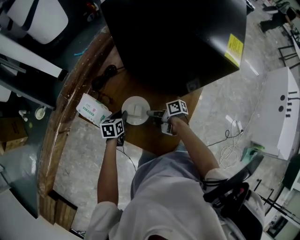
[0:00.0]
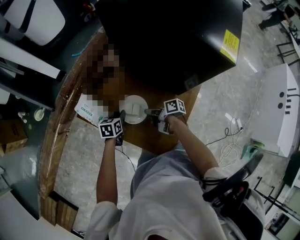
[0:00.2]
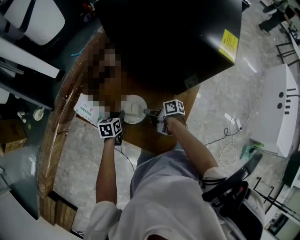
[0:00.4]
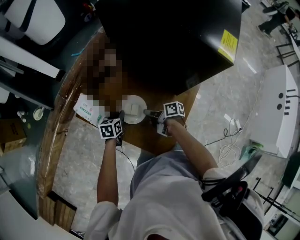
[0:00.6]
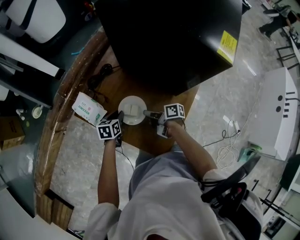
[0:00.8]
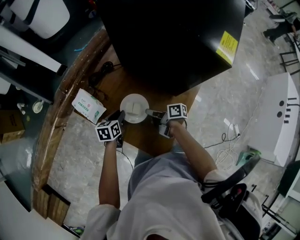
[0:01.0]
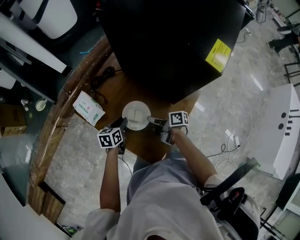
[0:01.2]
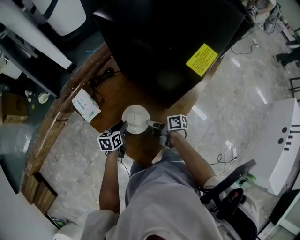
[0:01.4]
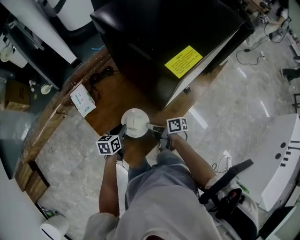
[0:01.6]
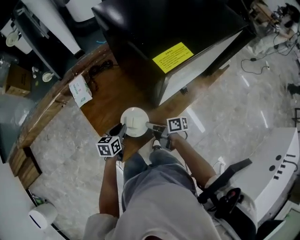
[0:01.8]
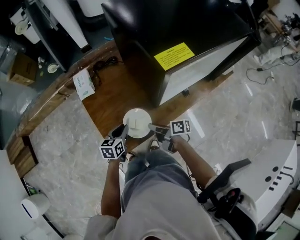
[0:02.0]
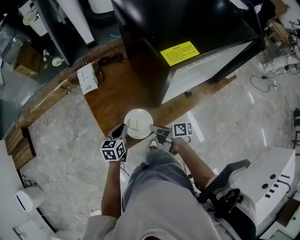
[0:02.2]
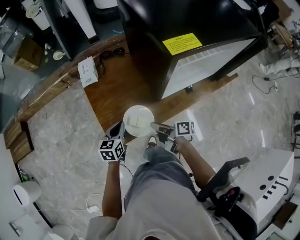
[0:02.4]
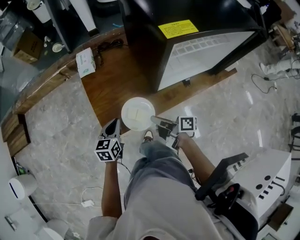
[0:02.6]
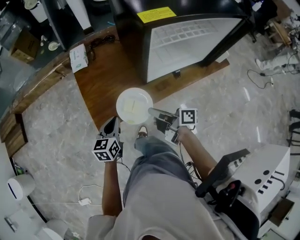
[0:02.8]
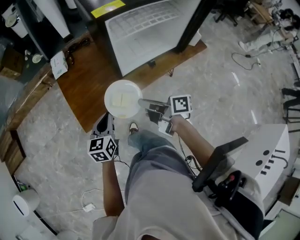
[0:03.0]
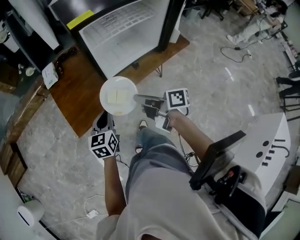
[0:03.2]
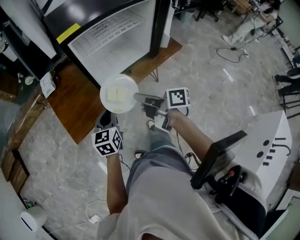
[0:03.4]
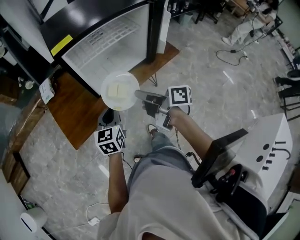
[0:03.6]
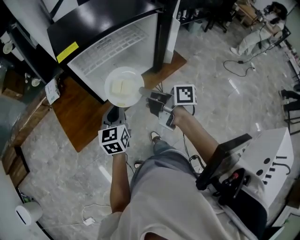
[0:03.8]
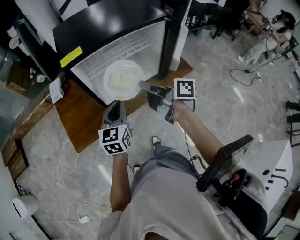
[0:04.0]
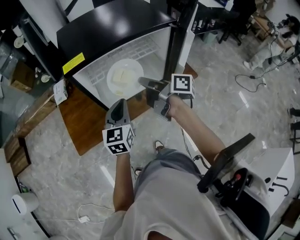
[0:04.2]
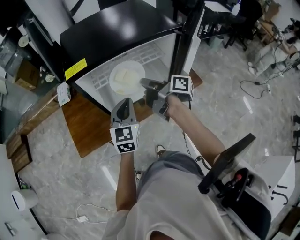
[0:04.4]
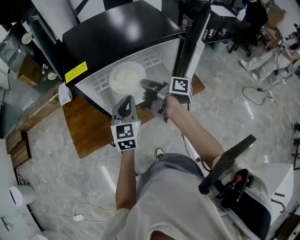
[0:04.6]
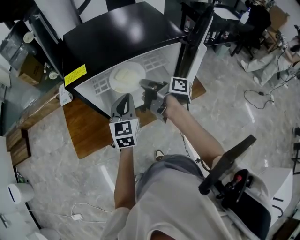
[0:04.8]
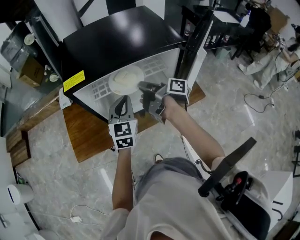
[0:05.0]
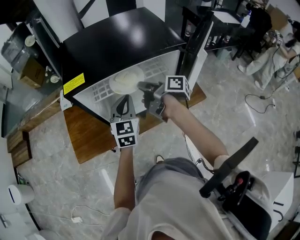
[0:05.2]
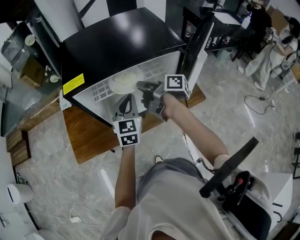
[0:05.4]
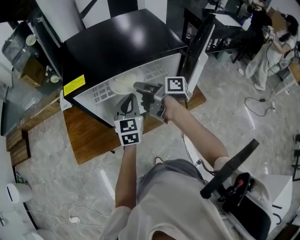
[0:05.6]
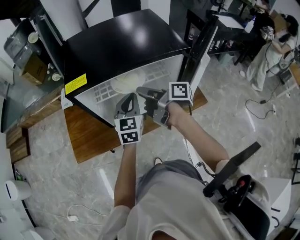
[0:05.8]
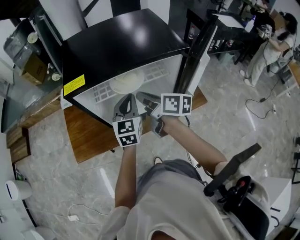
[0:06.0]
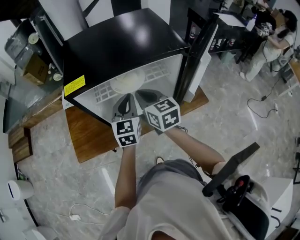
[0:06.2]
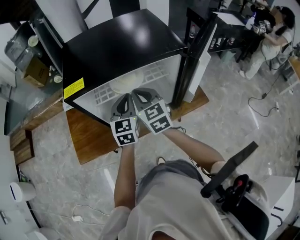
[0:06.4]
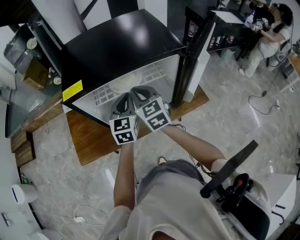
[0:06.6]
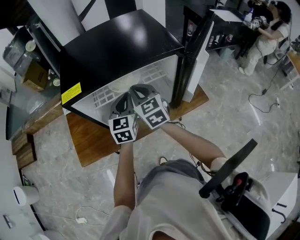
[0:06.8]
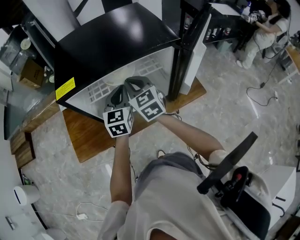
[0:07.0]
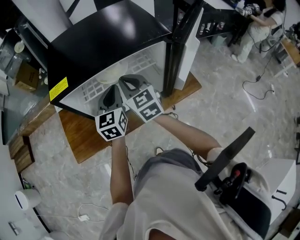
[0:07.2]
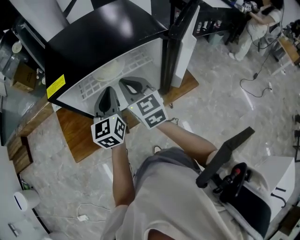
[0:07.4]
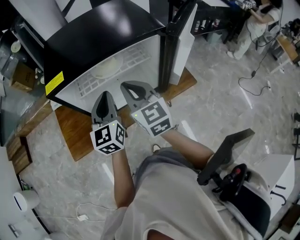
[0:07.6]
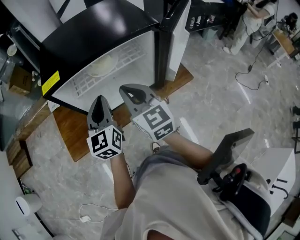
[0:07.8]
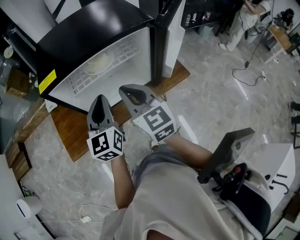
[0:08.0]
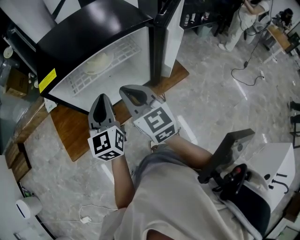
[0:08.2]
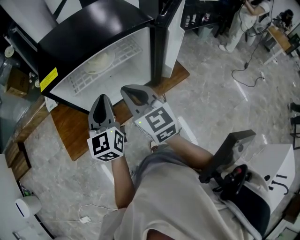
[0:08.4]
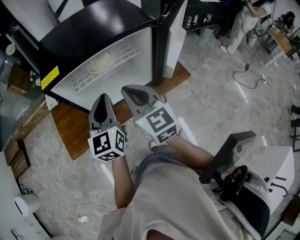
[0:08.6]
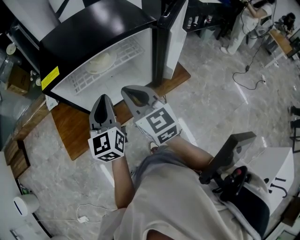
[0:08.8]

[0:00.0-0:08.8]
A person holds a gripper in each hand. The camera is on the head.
0:00.0 to 0:01.4: The right gripper goes approximately 10 cm to the right, while the left gripper is displaced to the right and backward by approximately 10 cm.
0:01.4 to 0:03.0: The two grippers travel together, approximately 50 cm. The right gripper swivels roughly 30 degrees. Meanwhile the left gripper swivels approximately 30 degrees, and closes its fingers.
0:03.0 to 0:04.4: The pair of grippers is taken to the right, roughly 40 cm. The left gripper moves upward, roughly 20 cm, and changes its angle by roughly 20 degrees.
0:04.4 to 0:05.8: The right gripper heads forward, covering approximately 5 cm, and opens up, while the left gripper moves forward and to the right, roughly 10 cm.
0:05.8 to 0:07.4: The left gripper moves about 5 cm. Meanwhile the right gripper rotates around the line of its fingers by some 80 degrees, counterclockwise from behind, and closes.
0:07.4 to 0:08.8: The two grippers go approximately 10 cm backward.

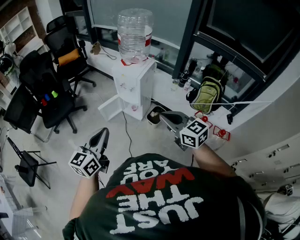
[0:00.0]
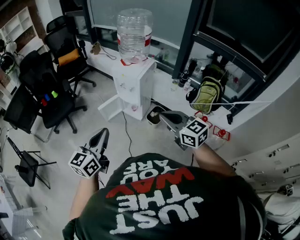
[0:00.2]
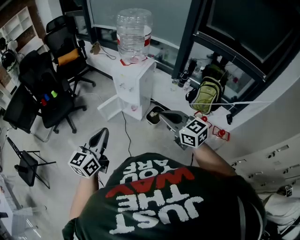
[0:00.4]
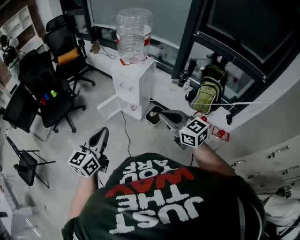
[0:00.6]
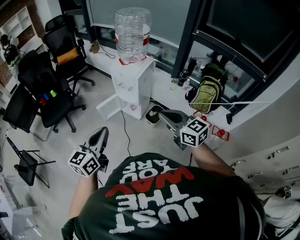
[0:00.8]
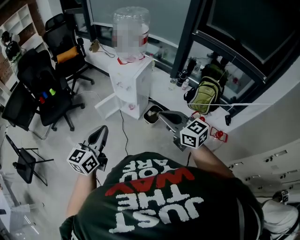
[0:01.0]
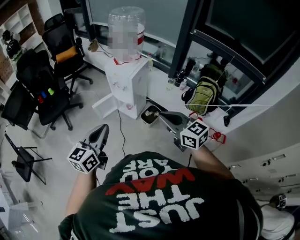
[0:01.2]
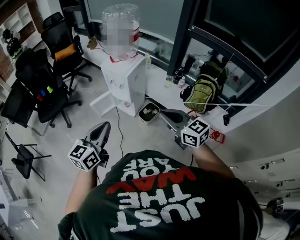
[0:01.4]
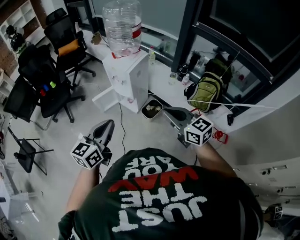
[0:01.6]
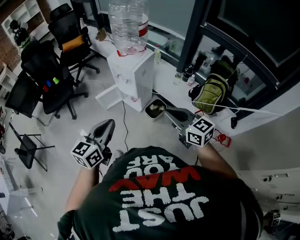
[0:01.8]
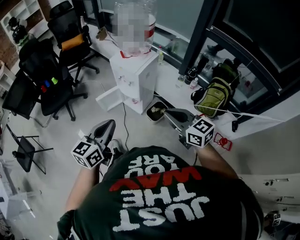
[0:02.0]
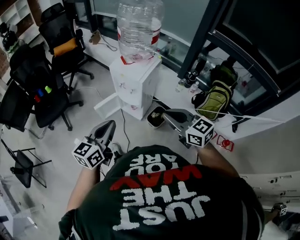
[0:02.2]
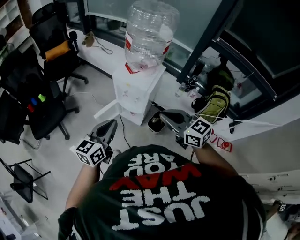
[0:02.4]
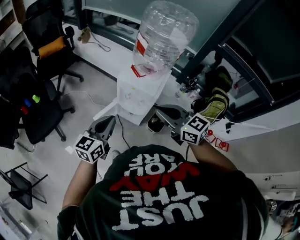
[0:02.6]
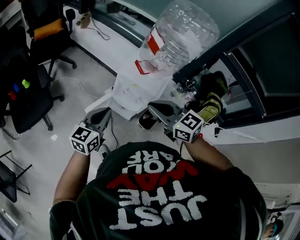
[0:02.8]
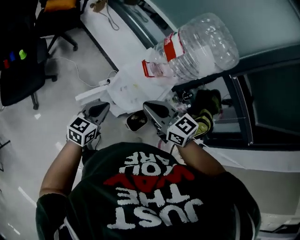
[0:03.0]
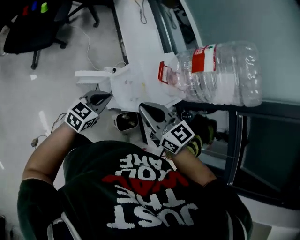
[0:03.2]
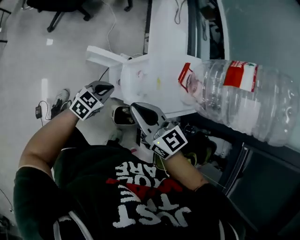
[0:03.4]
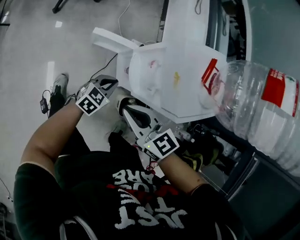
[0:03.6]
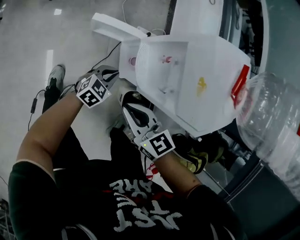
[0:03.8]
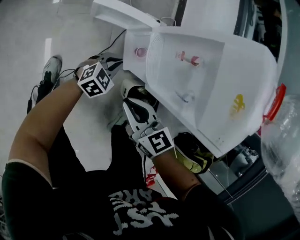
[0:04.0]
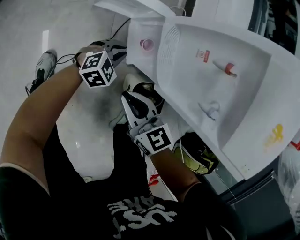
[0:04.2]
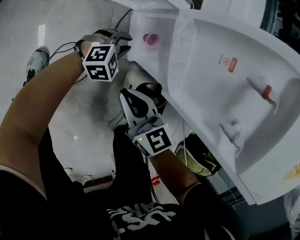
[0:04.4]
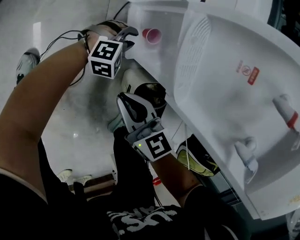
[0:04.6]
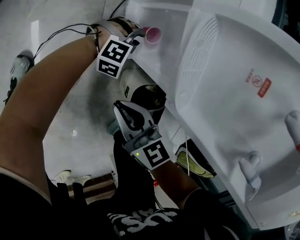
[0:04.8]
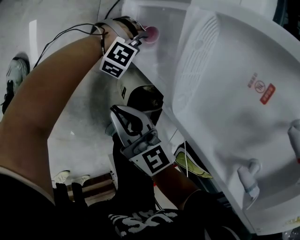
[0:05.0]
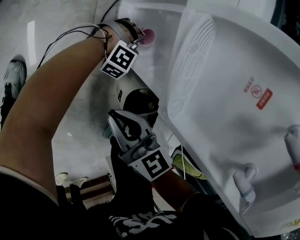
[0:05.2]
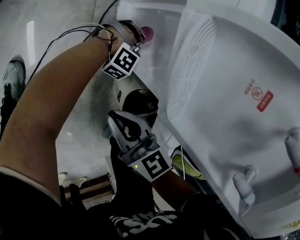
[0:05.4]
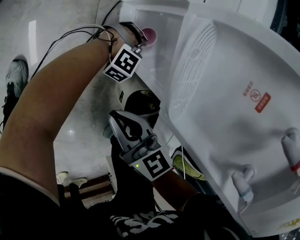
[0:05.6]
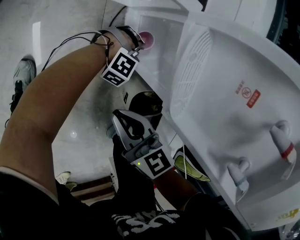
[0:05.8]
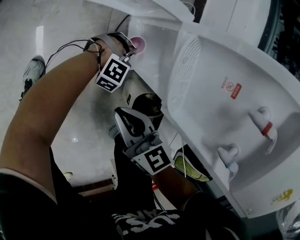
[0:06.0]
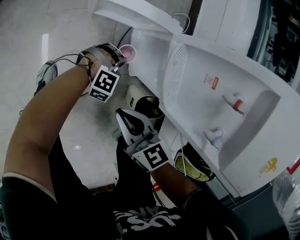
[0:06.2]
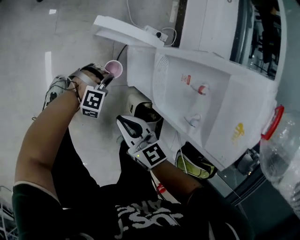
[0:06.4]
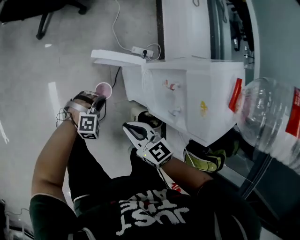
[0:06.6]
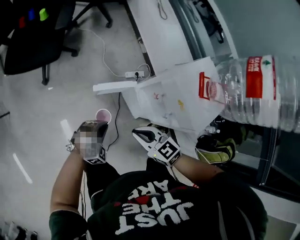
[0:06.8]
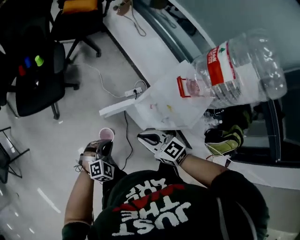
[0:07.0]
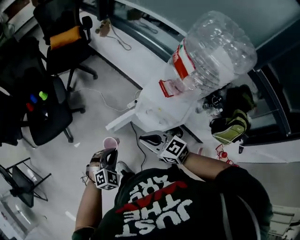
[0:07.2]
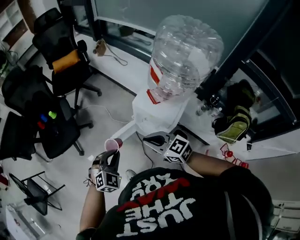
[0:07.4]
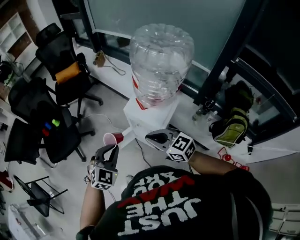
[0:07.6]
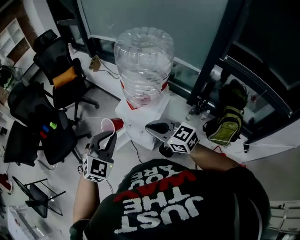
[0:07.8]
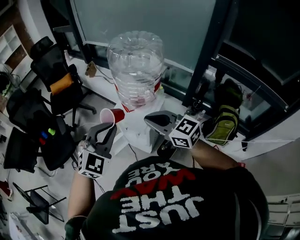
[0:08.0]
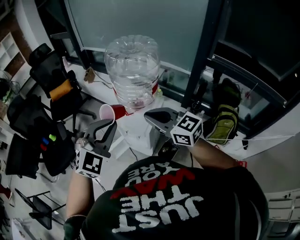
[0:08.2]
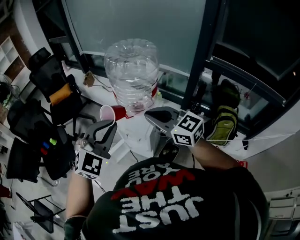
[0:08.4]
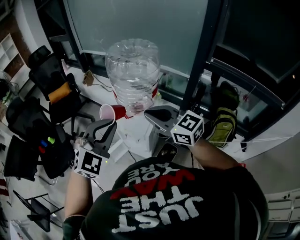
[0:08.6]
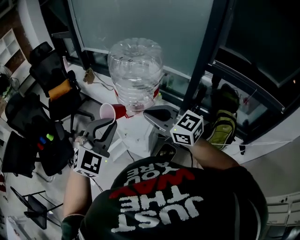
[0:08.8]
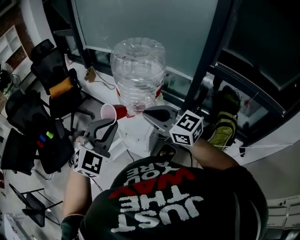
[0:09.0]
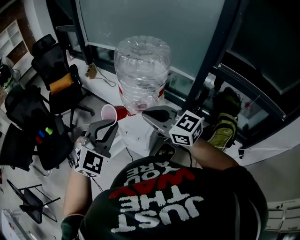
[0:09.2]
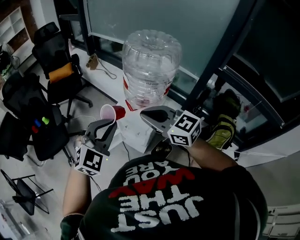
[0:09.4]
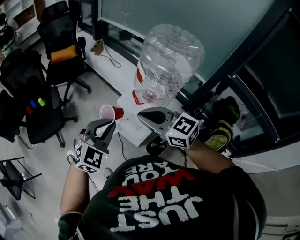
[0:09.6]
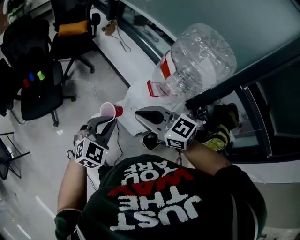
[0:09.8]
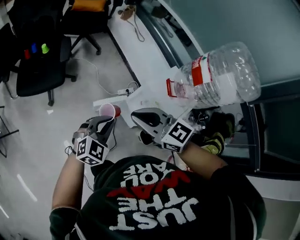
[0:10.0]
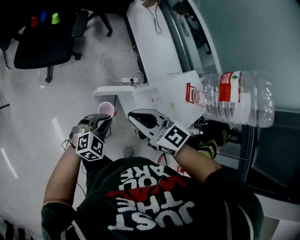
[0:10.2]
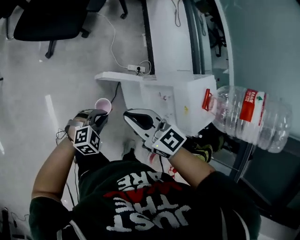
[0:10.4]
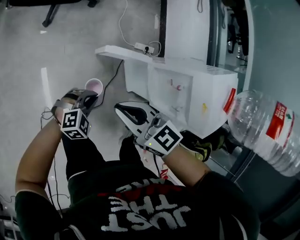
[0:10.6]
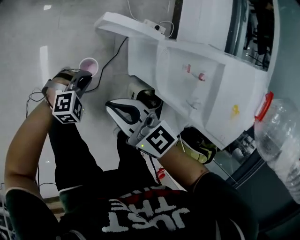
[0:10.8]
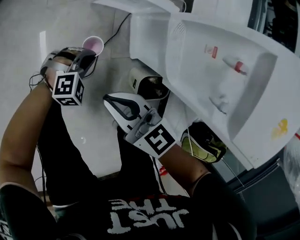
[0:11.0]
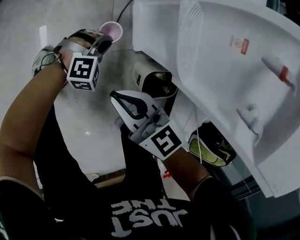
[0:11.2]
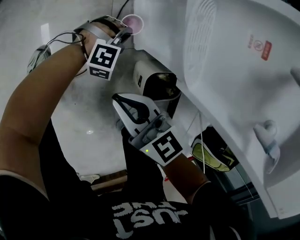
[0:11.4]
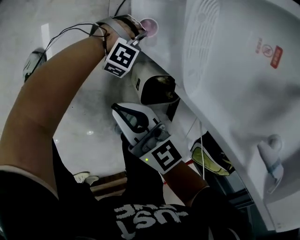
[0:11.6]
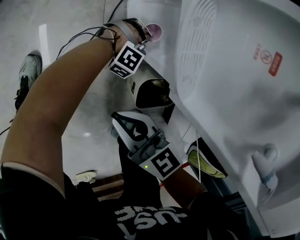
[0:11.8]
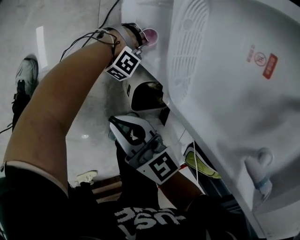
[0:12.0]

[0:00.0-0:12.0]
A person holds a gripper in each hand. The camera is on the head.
0:00.0 to 0:01.6: The two grippers go some 15 cm to the right.
0:01.6 to 0:03.0: The two grippers travel together, forward and to the left, about 50 cm. The left gripper moves downward, roughly 20 cm.
0:03.0 to 0:04.4: Both grippers move downward, some 70 cm. The right gripper turns by some 30 degrees; the left gripper tips its fingers downward by approximately 30 degrees.
0:04.4 to 0:06.0: The left gripper moves downward, roughly 5 cm, goes to the right and returns, some 15 cm each way, and swivels roughly 40 degrees.
0:06.0 to 0:07.6: The grippers both shift upward by roughly 70 cm. The left gripper changes its angle by roughly 30 degrees, while the right gripper turns by approximately 40 degrees.
0:07.6 to 0:09.0: Both grippers travel together upward and to the right, roughly 20 cm. The left gripper rotates approximately 20 degrees.
0:09.0 to 0:10.4: The right gripper goes about 50 cm to the left and downward, and turns by approximately 40 degrees. Meanwhile the left gripper moves downward and to the left, some 60 cm, and rotates around the line of its fingers by some 40 degrees, counterclockwise from behind.
0:10.4 to 0:12.0: The right gripper is displaced downward, to the right and backward by about 50 cm. The left gripper heads downward and to the right, covering approximately 70 cm, and rotates around the line of its fingers by about 50 degrees, clockwise from behind.

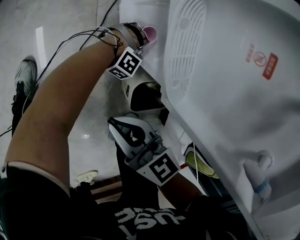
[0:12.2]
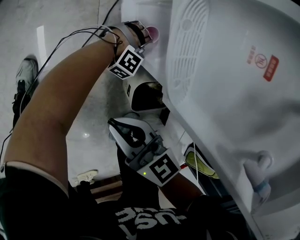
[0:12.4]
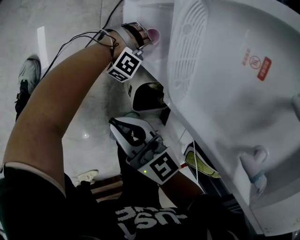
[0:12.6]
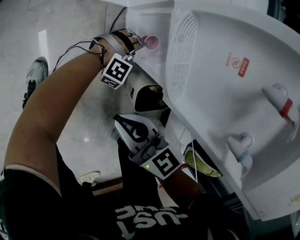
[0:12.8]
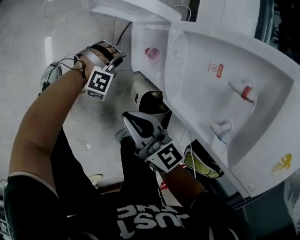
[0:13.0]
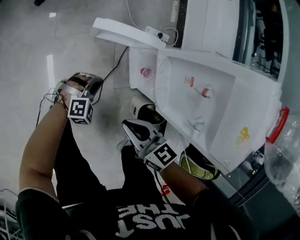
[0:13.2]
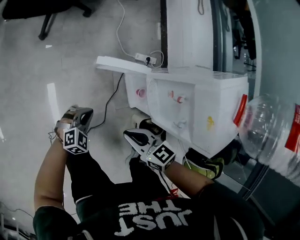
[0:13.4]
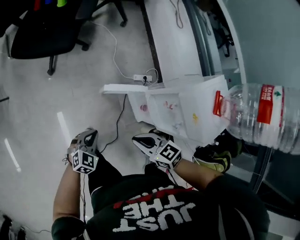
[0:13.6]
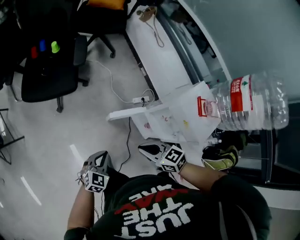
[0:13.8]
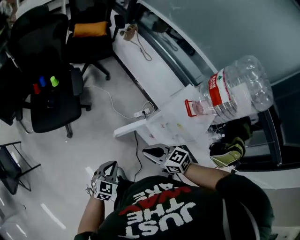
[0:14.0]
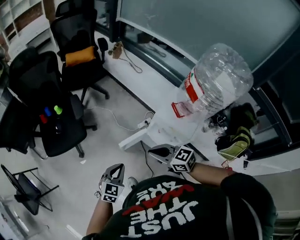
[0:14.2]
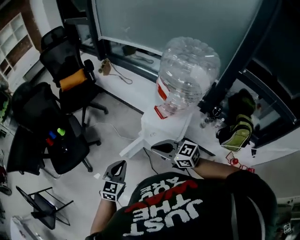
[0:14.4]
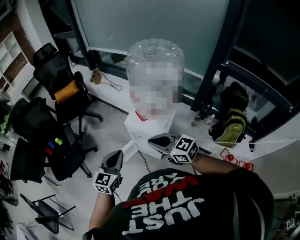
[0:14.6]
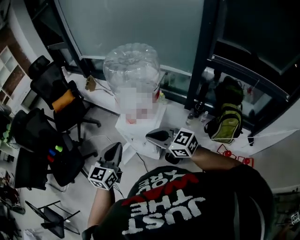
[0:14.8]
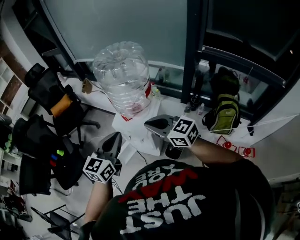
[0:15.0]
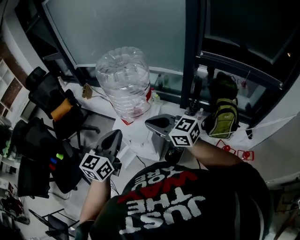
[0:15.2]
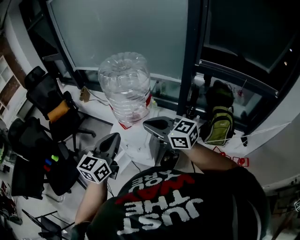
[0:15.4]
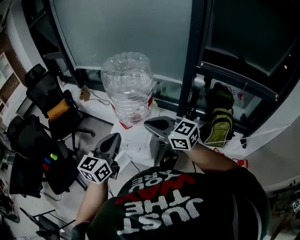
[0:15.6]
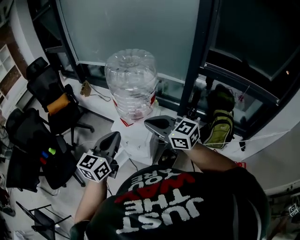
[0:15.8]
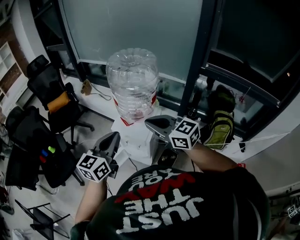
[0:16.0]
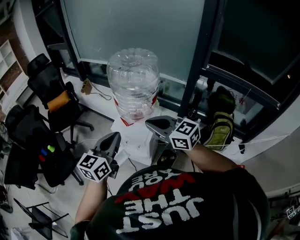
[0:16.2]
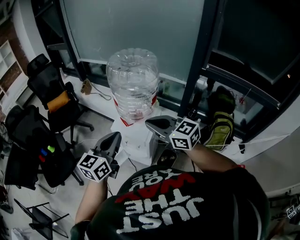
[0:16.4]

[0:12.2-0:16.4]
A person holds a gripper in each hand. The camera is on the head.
0:12.2 to 0:13.6: The right gripper is displaced upward and to the left by approximately 35 cm, while the left gripper is displaced to the left and upward by about 60 cm, rotates around the line of its fingers by roughly 70 degrees, counterclockwise from behind, and opens, then closes once more.
0:13.6 to 0:15.0: Both grippers move upward, about 50 cm. The right gripper tips its fingers upward by about 30 degrees, while the left gripper points its fingers about 30 degrees further upward.
0:15.0 to 0:16.4: The grippers make only small movements.
